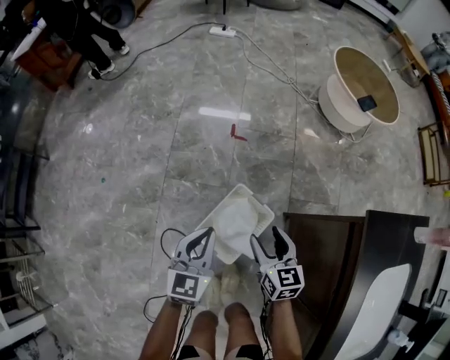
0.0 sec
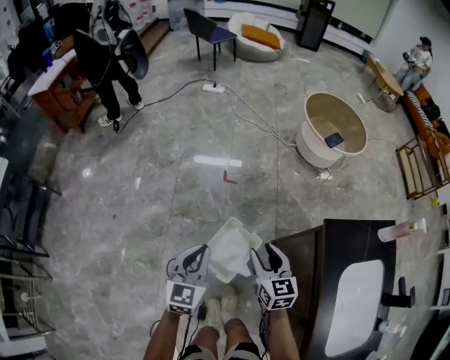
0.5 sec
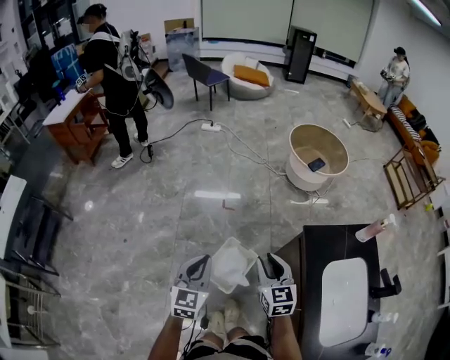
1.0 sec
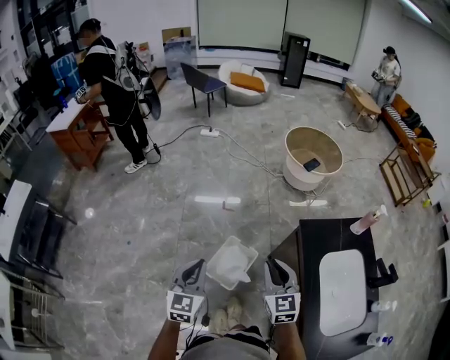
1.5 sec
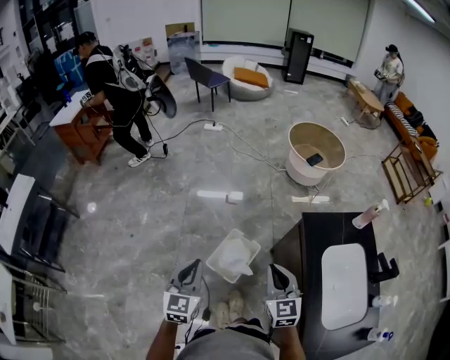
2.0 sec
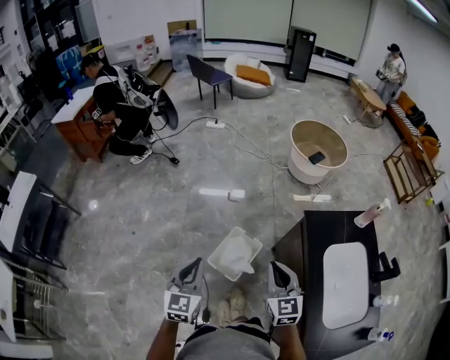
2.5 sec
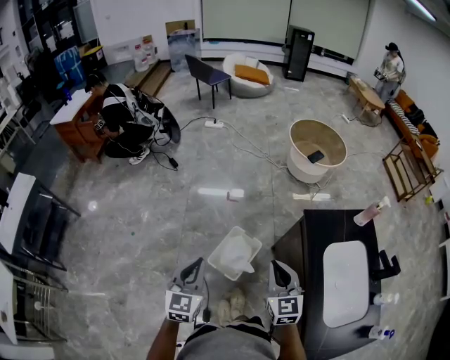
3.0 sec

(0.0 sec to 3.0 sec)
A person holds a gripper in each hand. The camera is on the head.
0.0 sec - 1.5 sec: The grippers both shift upward and backward by approximately 40 cm. The right gripper swivels about 30 degrees, and closes its fingers.
1.5 sec - 3.0 sec: There are only small adjustments of the grippers.

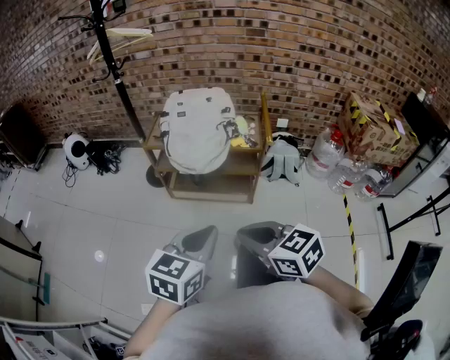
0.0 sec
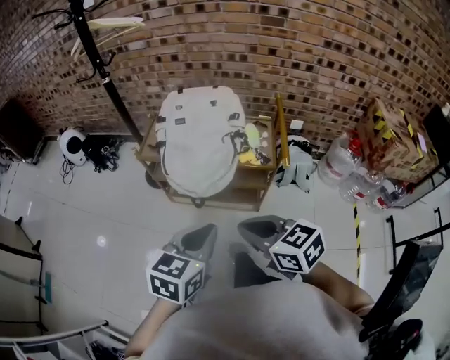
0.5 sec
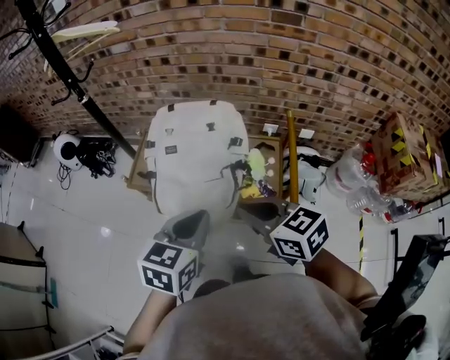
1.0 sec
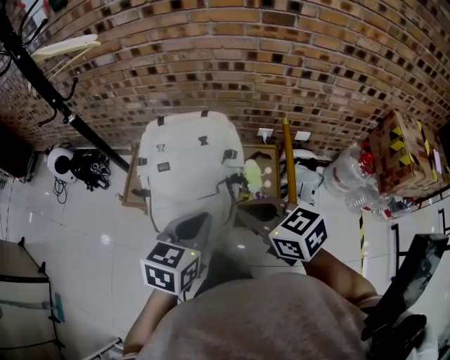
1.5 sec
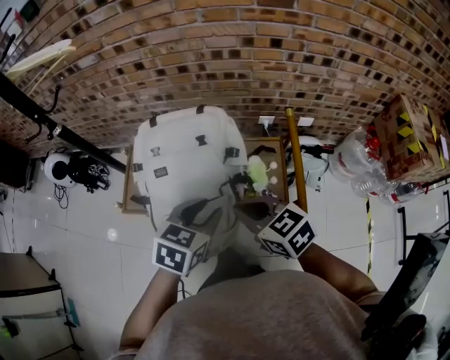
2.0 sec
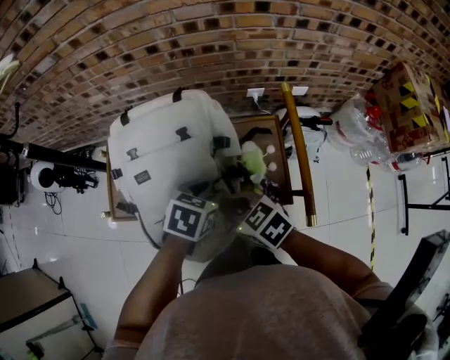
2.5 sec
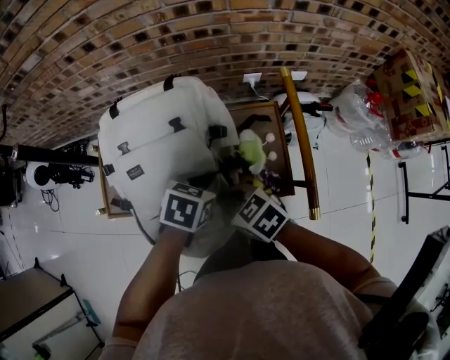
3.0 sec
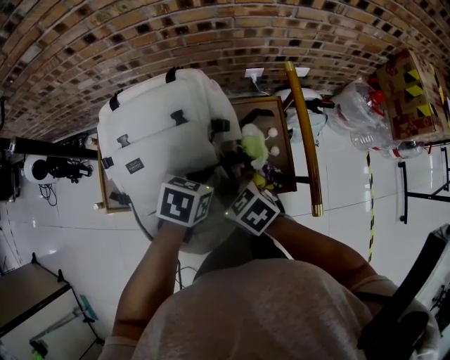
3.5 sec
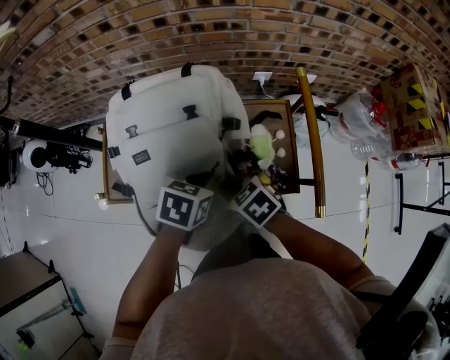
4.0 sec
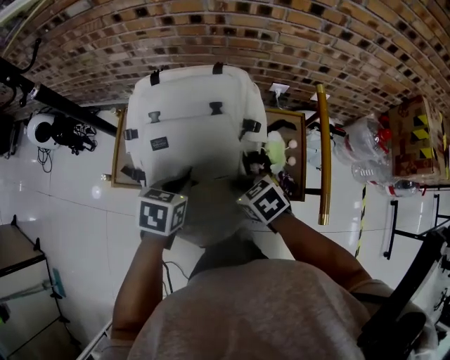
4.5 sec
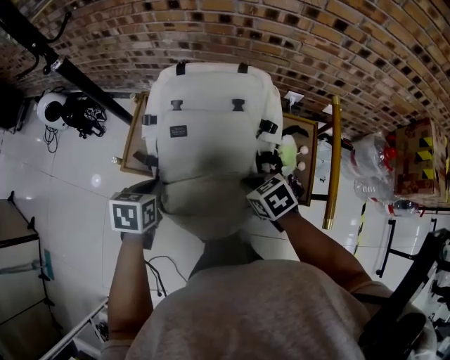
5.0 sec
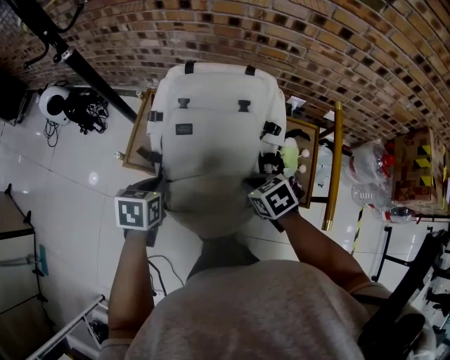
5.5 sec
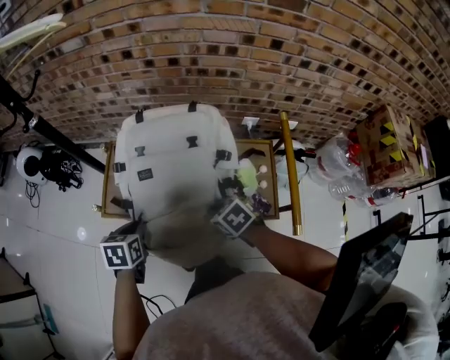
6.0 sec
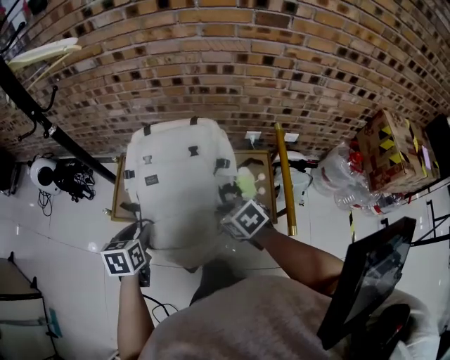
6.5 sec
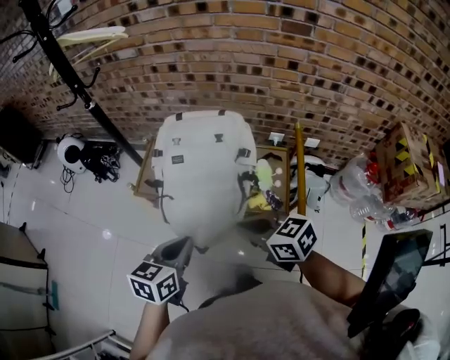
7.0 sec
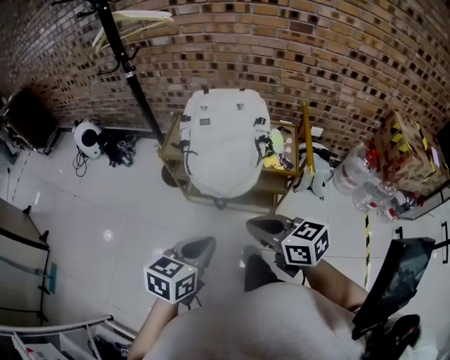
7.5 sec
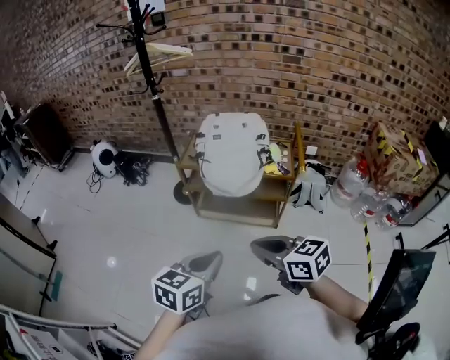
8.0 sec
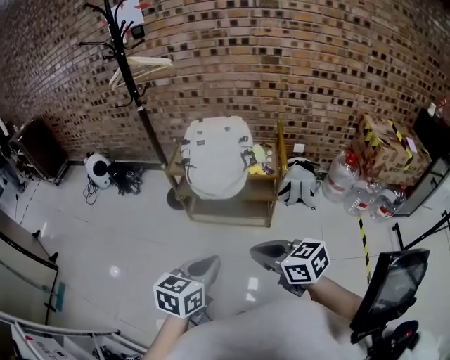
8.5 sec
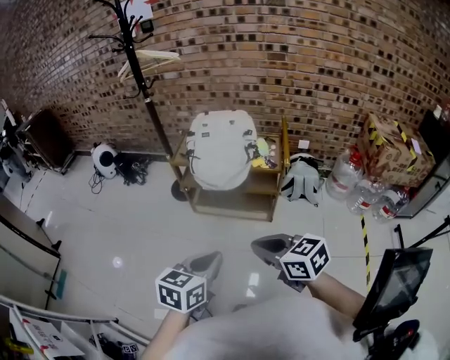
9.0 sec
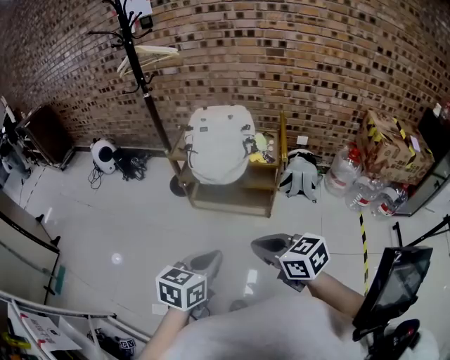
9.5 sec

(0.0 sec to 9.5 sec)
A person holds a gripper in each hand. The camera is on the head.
0.0 sec - 2.0 sec: The two grippers travel together, forward, approximately 50 cm. The left gripper opens its fingers.
2.0 sec - 4.0 sec: The two grippers go about 15 cm downward. The left gripper closes up. Meanwhile the right gripper turns by approximately 20 degrees.
4.0 sec - 5.5 sec: The left gripper goes roughly 25 cm to the left, and turns by about 30 degrees.
5.5 sec - 7.5 sec: Both grippers move backward and upward, approximately 40 cm. The right gripper tips its fingers upward by roughly 40 degrees. Meanwhile the left gripper changes its angle by some 30 degrees, and opens, then closes once more.
7.5 sec - 9.5 sec: Both grippers travel together backward, roughly 20 cm.

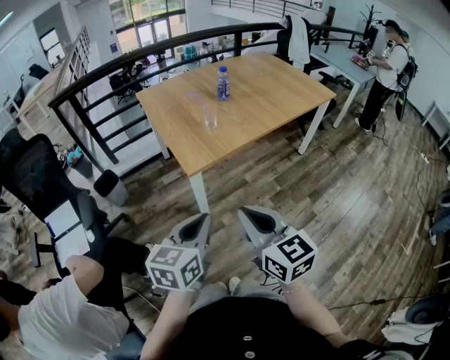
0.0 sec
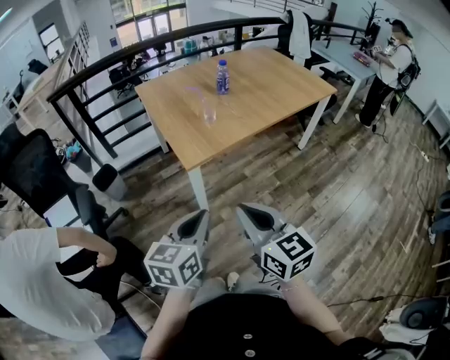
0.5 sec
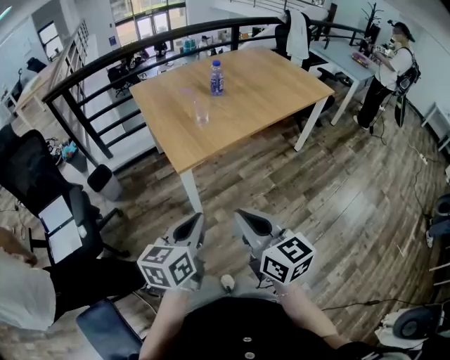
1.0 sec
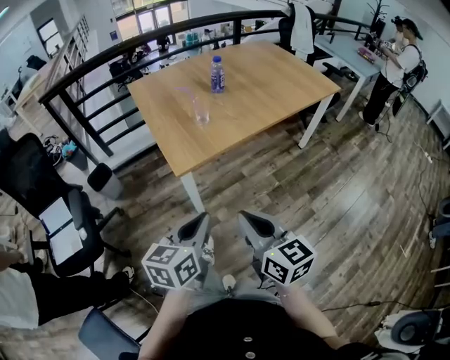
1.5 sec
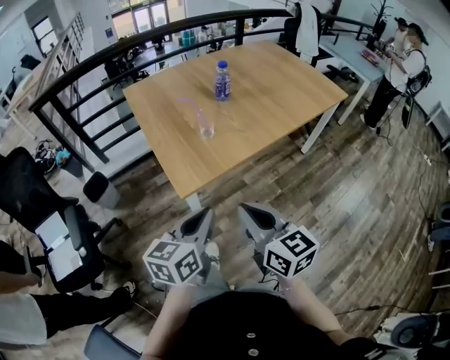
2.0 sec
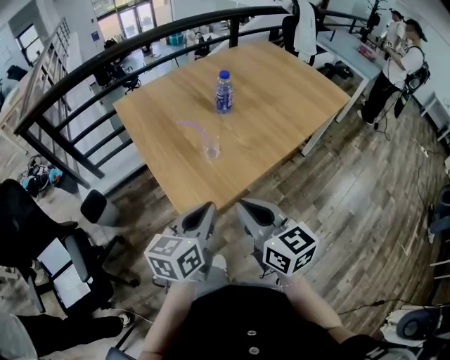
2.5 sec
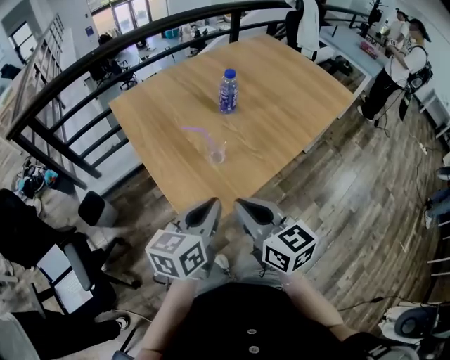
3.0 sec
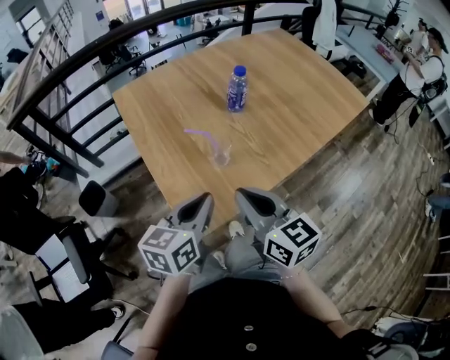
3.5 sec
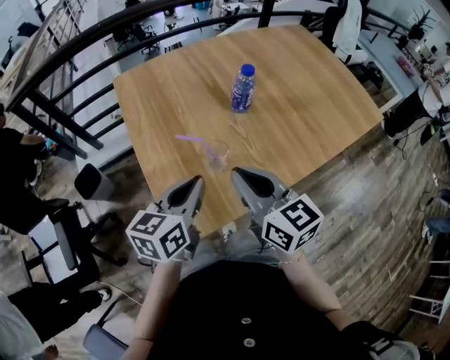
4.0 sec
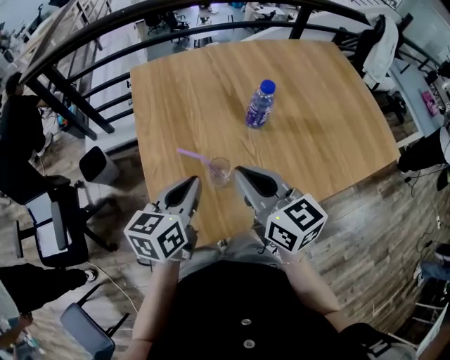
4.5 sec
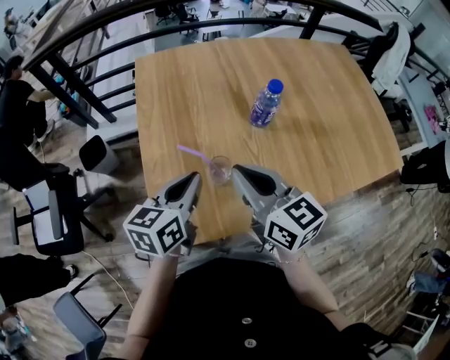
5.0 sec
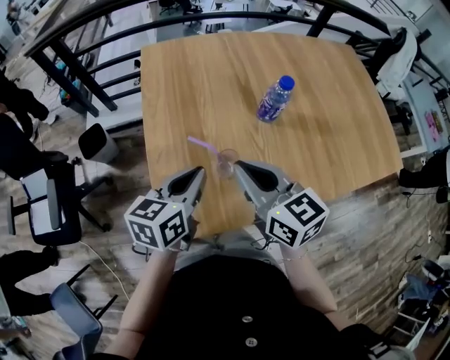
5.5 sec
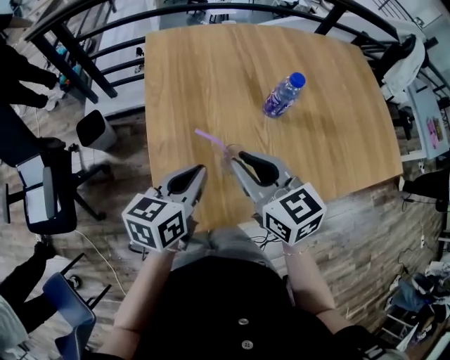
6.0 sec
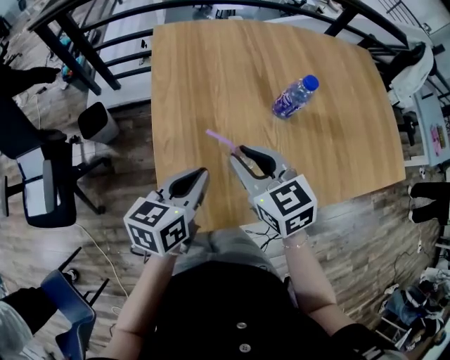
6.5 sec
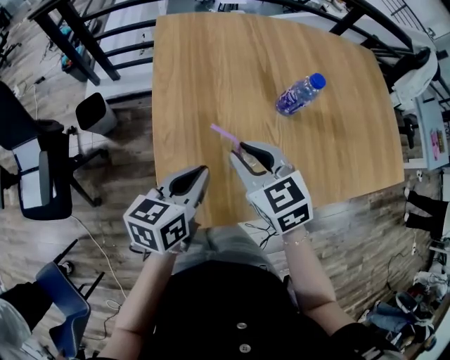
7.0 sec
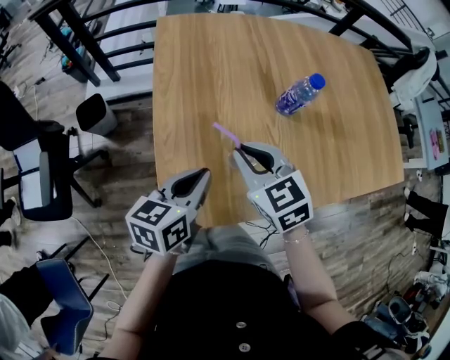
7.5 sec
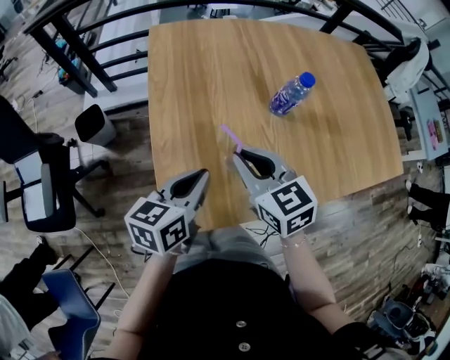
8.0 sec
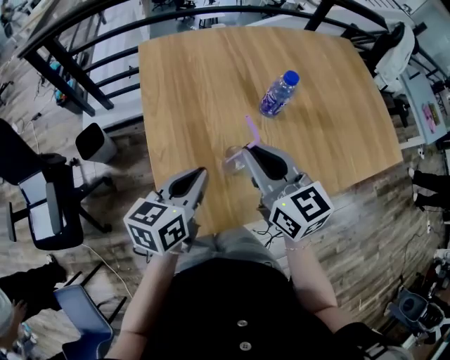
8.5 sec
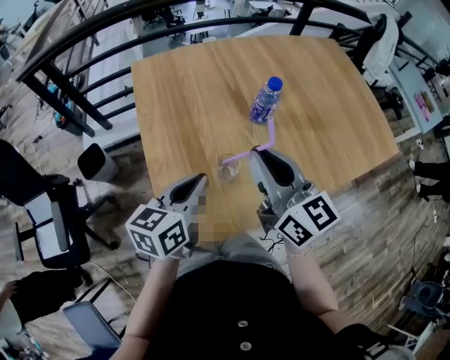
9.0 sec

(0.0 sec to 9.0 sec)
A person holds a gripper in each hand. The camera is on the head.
0.0 sec - 2.0 sec: The two grippers go approximately 20 cm forward.
2.0 sec - 4.5 sec: The grippers both shift forward by roughly 40 cm.
4.5 sec - 7.0 sec: The left gripper travels downward by about 5 cm; the right gripper heads downward and to the left, covering roughly 10 cm, swivels approximately 30 degrees, and opens up.
7.0 sec - 9.0 sec: The left gripper is displaced upward by some 5 cm. The right gripper moves upward and to the right, roughly 15 cm, and points its fingers some 30 degrees further upward.

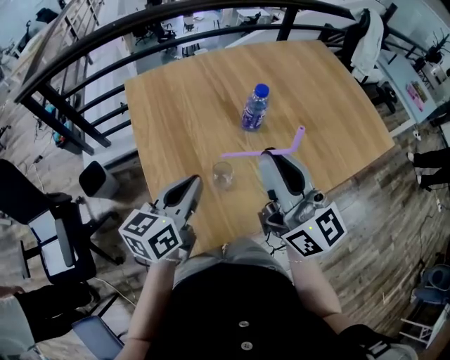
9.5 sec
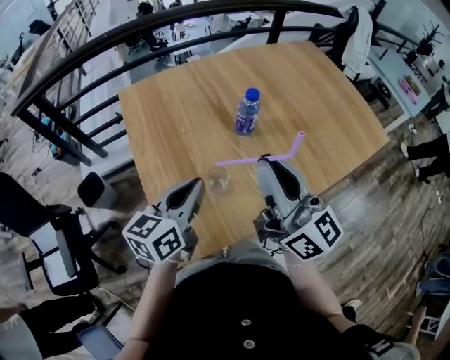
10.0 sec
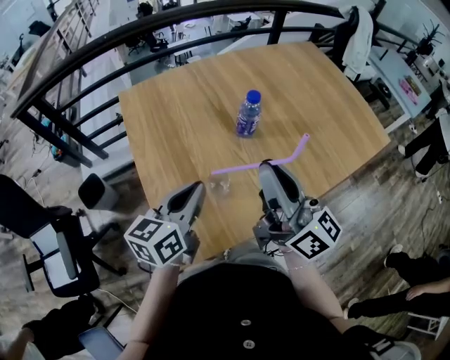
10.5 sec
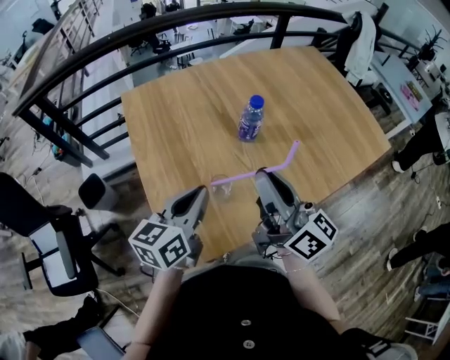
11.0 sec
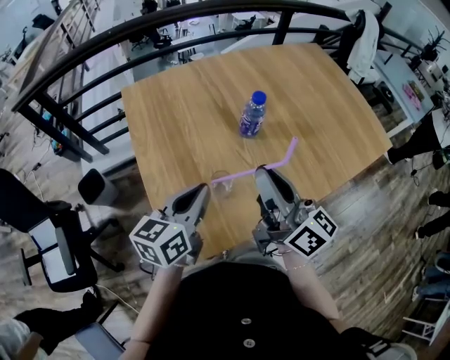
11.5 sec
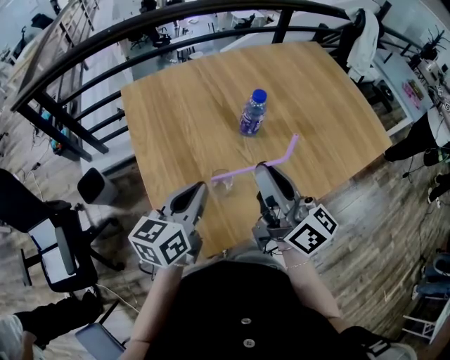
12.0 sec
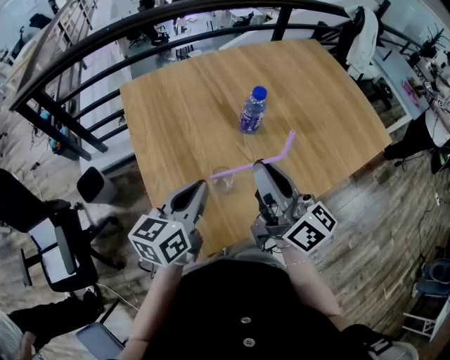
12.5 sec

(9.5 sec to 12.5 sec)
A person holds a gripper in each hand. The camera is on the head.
9.5 sec - 11.0 sec: The right gripper changes its angle by some 20 degrees.
11.0 sec - 12.5 sec: The grippers stay close to where they were, moving slightly.

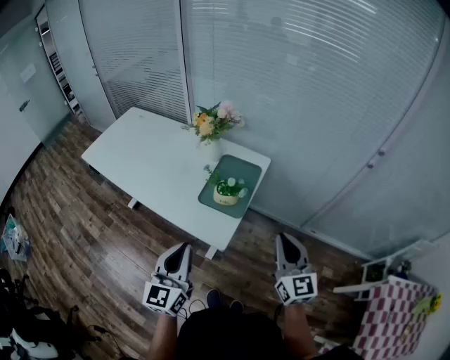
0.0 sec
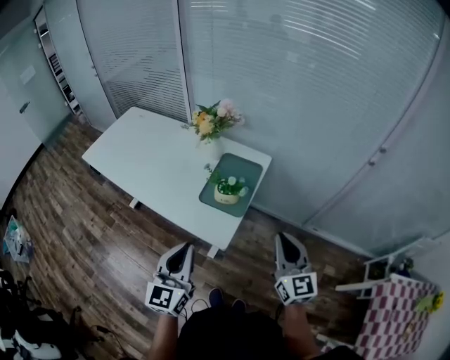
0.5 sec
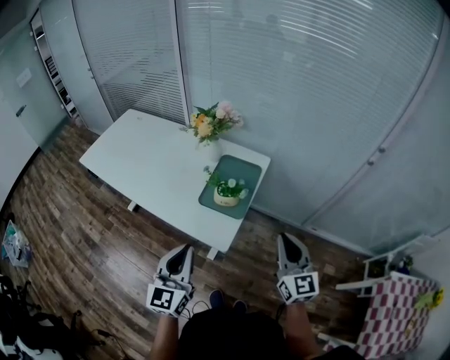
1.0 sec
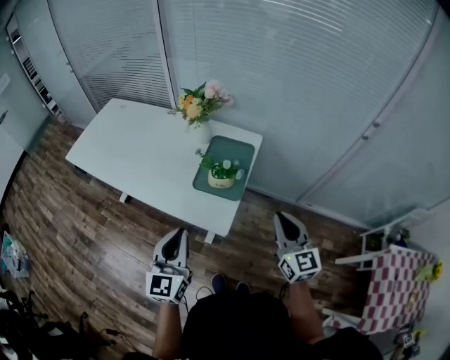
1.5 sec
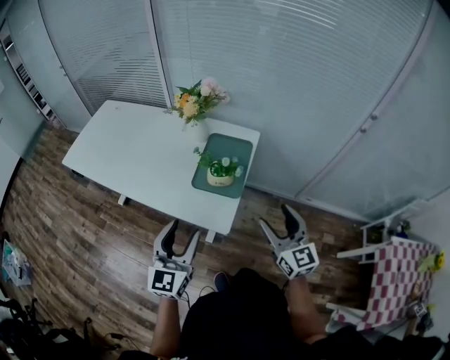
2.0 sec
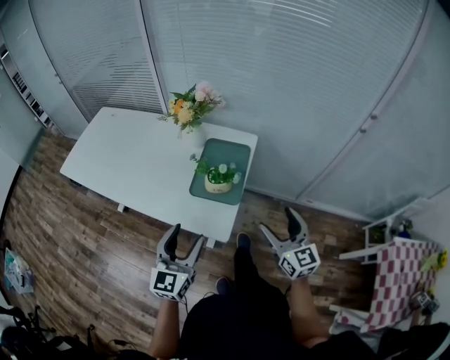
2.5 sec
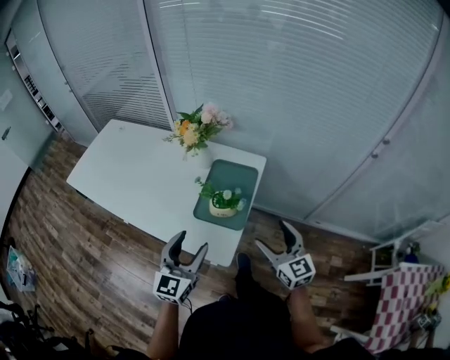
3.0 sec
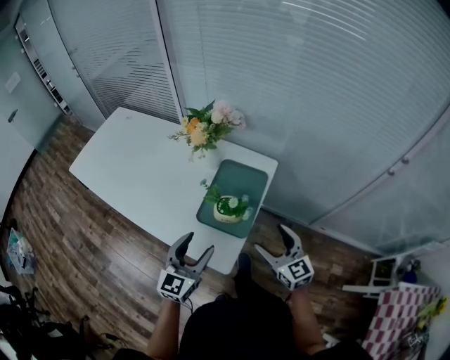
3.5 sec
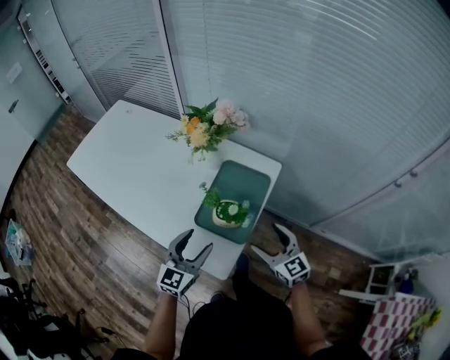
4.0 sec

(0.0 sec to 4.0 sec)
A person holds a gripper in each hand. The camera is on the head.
0.0 sec - 2.0 sec: The right gripper changes place by some 5 cm, and opens; the left gripper opens up.
2.0 sec - 4.0 sec: The two grippers go approximately 20 cm forward and downward. The right gripper swivels some 30 degrees.
